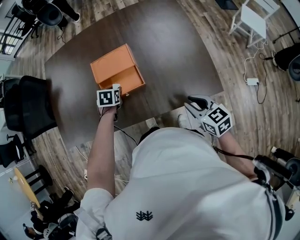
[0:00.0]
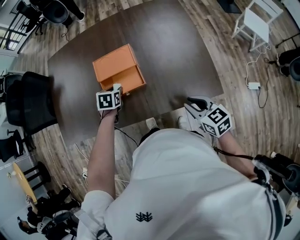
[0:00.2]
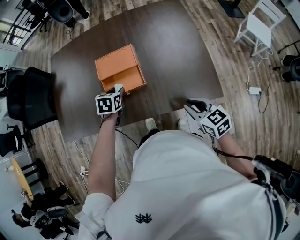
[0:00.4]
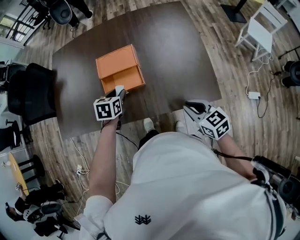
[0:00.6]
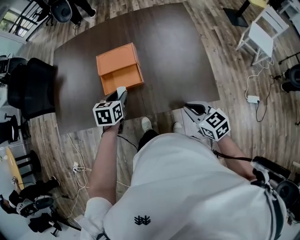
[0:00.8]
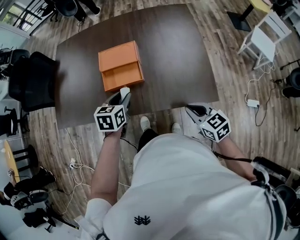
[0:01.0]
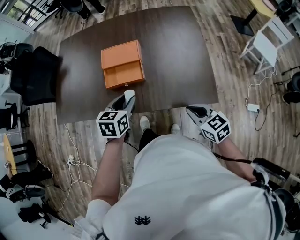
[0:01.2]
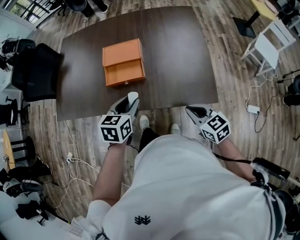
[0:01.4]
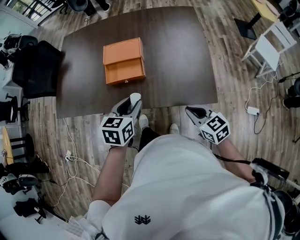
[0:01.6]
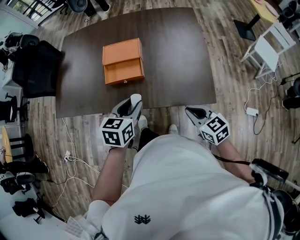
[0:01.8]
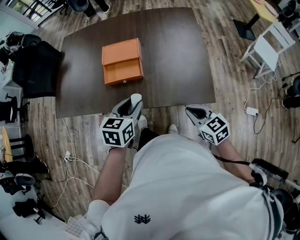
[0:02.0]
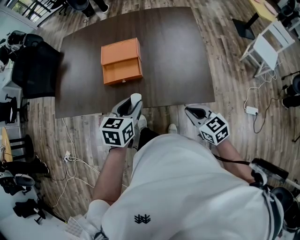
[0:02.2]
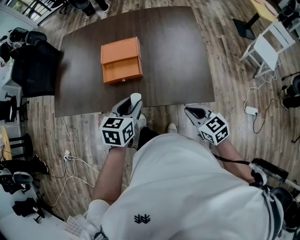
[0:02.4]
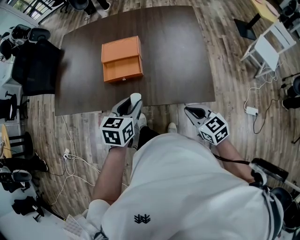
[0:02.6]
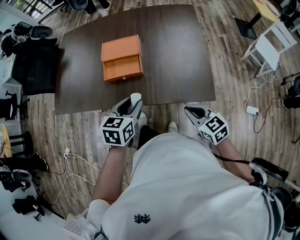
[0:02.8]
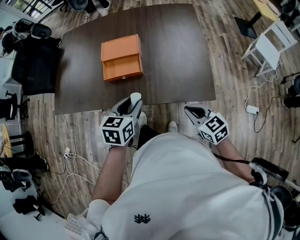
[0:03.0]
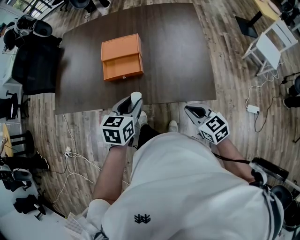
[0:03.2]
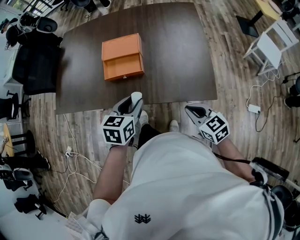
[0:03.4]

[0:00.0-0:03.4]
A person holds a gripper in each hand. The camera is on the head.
0:00.0 to 0:01.6: The right gripper is displaced backward by some 10 cm. The left gripper is displaced backward and upward by some 30 cm, and turns by approximately 30 degrees.
0:01.6 to 0:03.4: The grippers stay close to where they were, moving slightly.

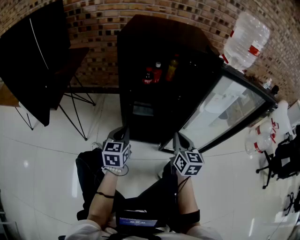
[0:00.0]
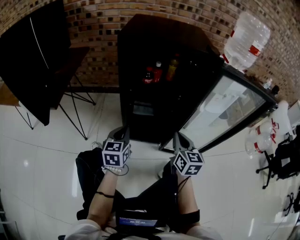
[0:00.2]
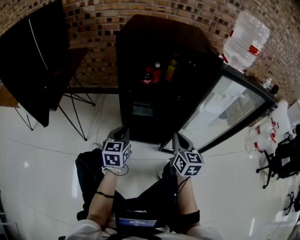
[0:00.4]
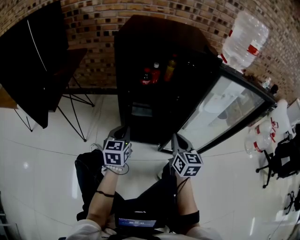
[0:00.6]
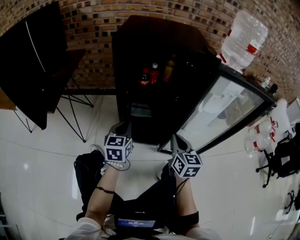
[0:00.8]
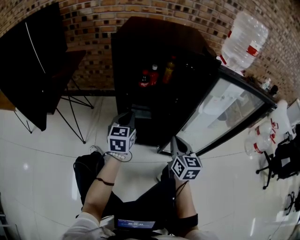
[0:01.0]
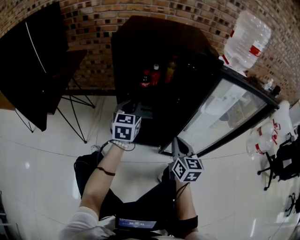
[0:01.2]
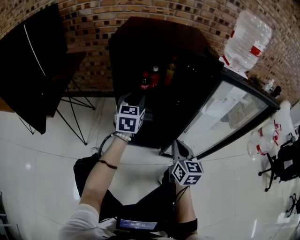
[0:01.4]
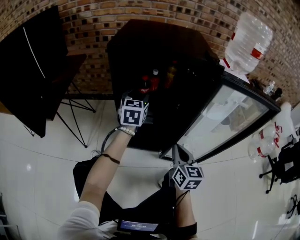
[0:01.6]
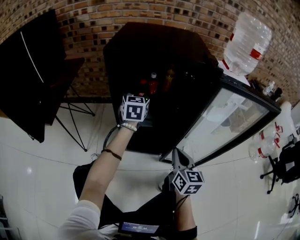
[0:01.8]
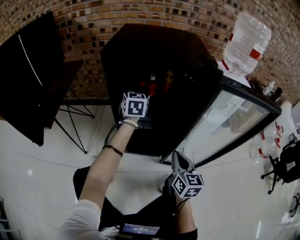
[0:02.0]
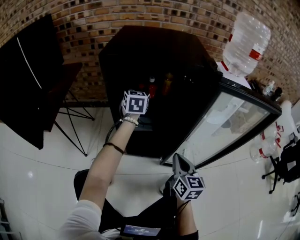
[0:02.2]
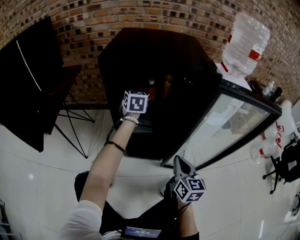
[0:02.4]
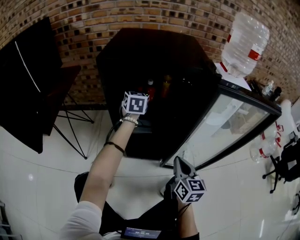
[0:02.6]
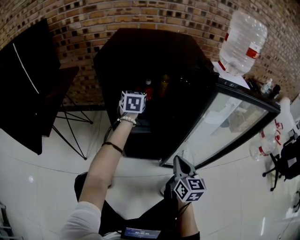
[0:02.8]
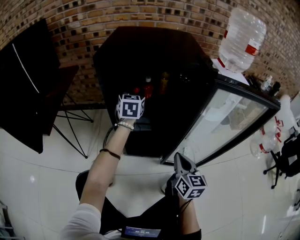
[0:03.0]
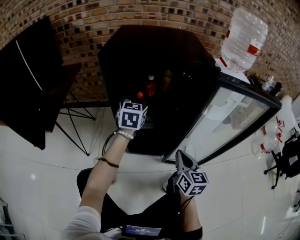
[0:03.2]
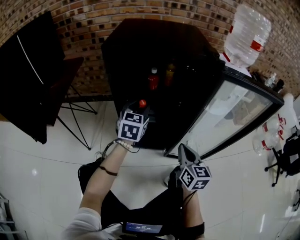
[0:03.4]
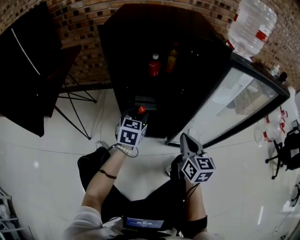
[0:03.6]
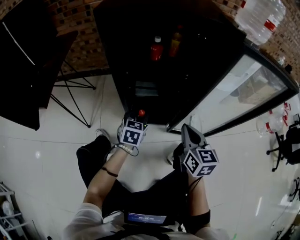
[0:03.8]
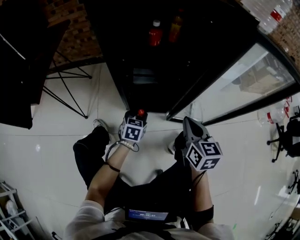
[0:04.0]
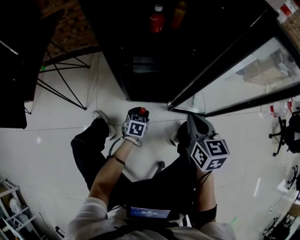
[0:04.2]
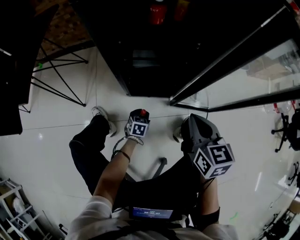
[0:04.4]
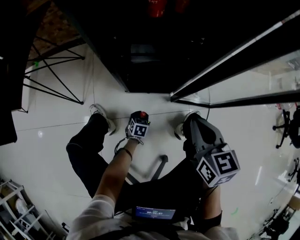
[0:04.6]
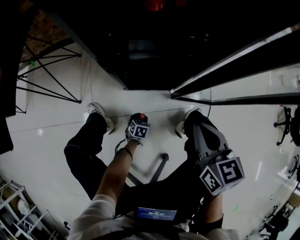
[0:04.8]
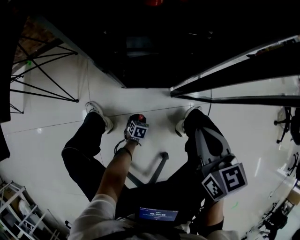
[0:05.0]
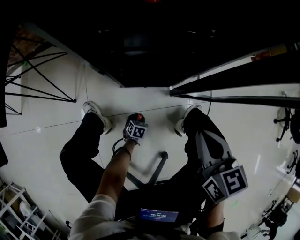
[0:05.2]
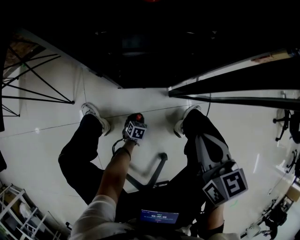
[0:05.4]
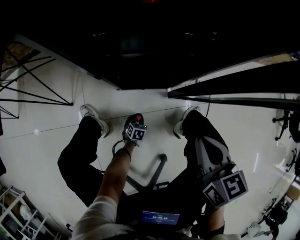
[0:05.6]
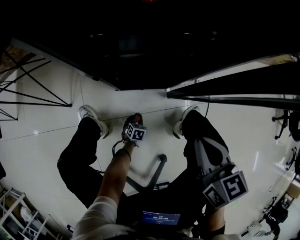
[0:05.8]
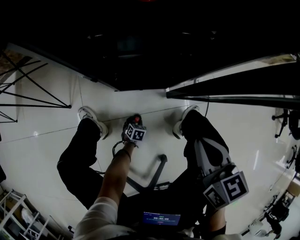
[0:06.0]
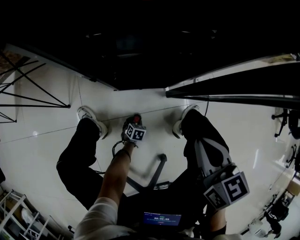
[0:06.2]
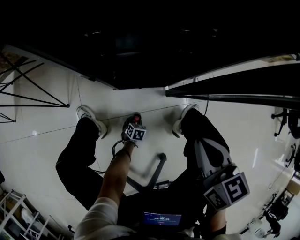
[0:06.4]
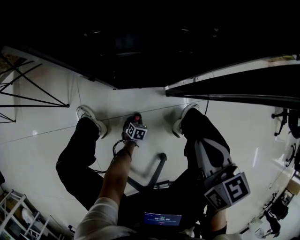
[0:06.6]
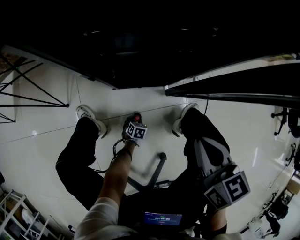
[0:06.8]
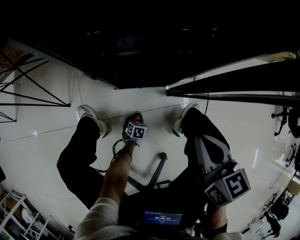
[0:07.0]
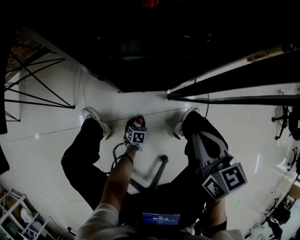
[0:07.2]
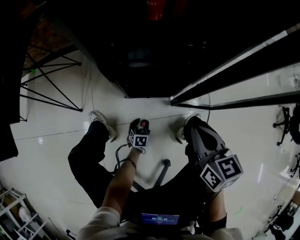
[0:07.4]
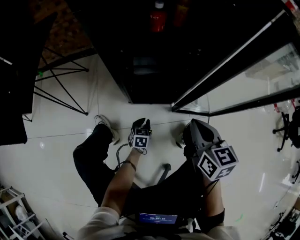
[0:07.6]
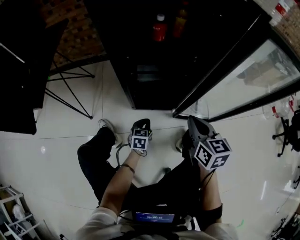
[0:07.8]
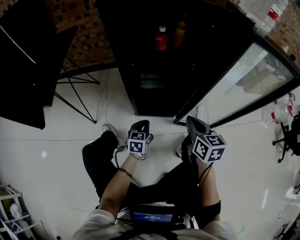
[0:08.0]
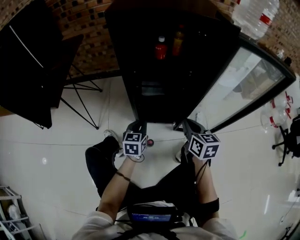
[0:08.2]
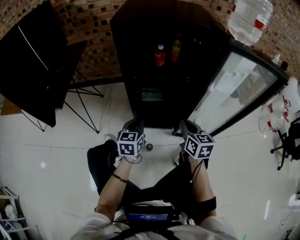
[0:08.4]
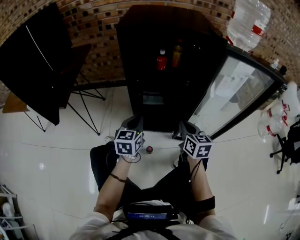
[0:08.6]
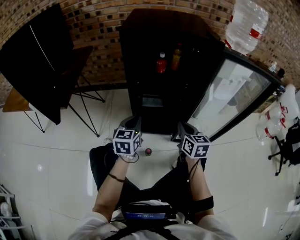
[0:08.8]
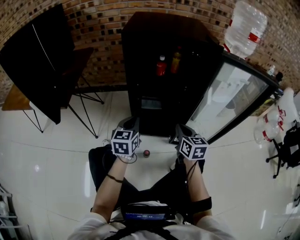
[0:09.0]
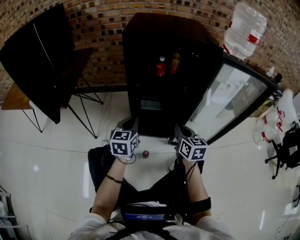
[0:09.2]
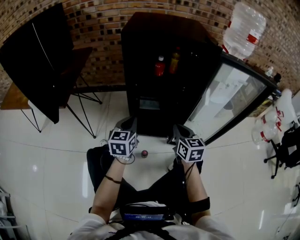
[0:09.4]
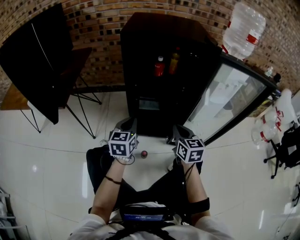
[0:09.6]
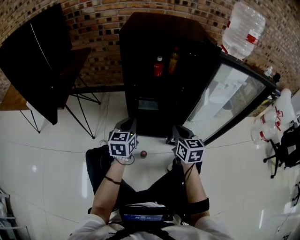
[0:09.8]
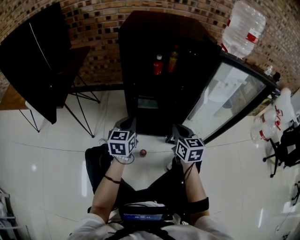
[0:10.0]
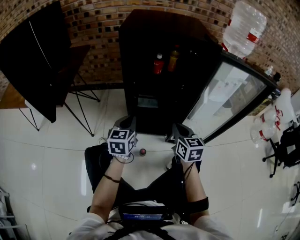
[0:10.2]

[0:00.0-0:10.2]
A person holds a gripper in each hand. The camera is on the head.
0:00.0 to 0:01.4: The left gripper travels forward and upward by about 20 cm, and opens its fingers.
0:01.4 to 0:03.0: The left gripper heads forward, covering approximately 10 cm.
0:03.0 to 0:04.4: The left gripper goes roughly 60 cm downward and backward, and points its fingers some 30 degrees further downward, while the right gripper travels downward by some 10 cm.
0:04.4 to 0:05.8: The left gripper travels downward by approximately 20 cm.
0:05.8 to 0:07.2: The grippers stay close to where they were, moving slightly.
0:07.2 to 0:08.8: The left gripper is displaced upward by roughly 60 cm, points its fingers some 40 degrees further upward, and closes up. The right gripper heads upward, covering approximately 10 cm.
0:08.8 to 0:10.2: The grippers move only a little.

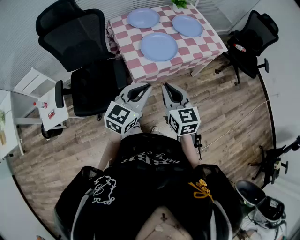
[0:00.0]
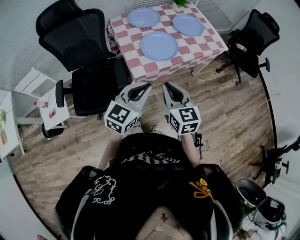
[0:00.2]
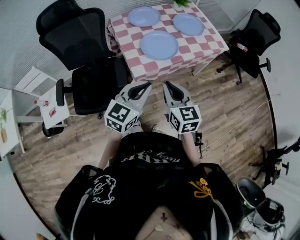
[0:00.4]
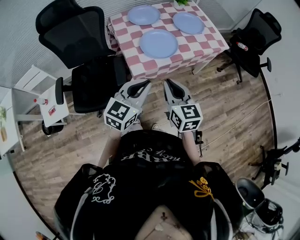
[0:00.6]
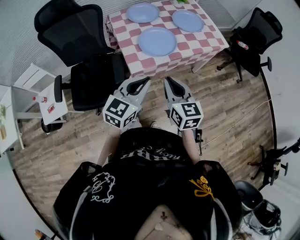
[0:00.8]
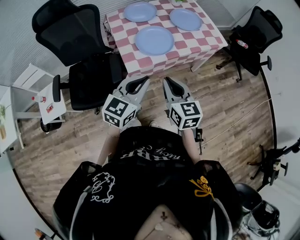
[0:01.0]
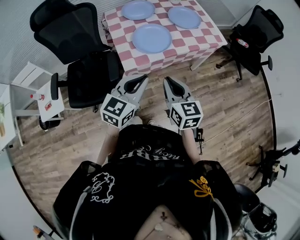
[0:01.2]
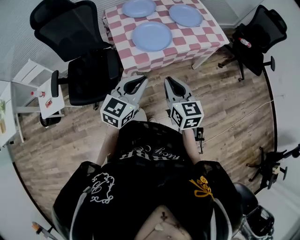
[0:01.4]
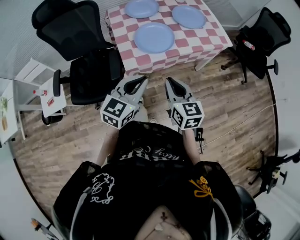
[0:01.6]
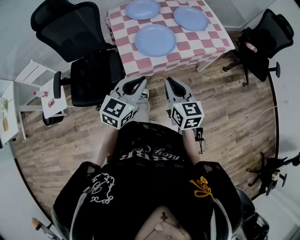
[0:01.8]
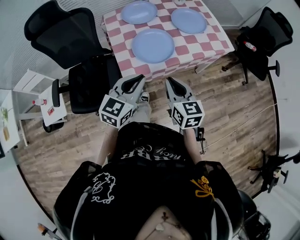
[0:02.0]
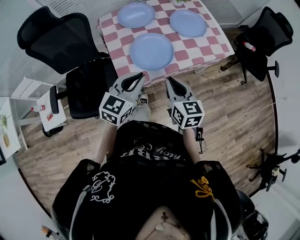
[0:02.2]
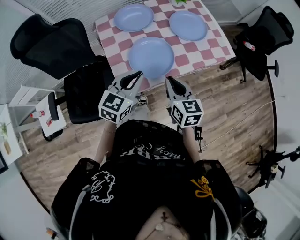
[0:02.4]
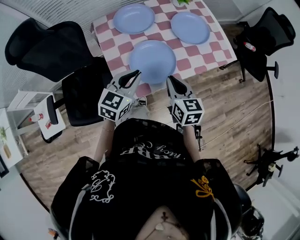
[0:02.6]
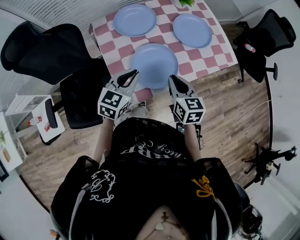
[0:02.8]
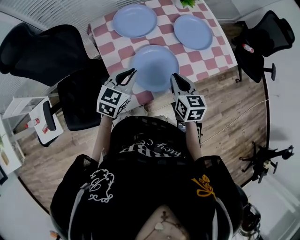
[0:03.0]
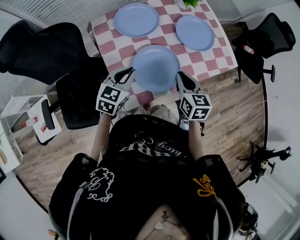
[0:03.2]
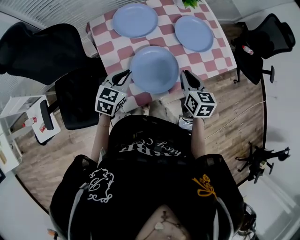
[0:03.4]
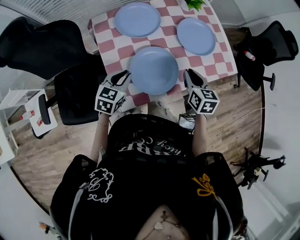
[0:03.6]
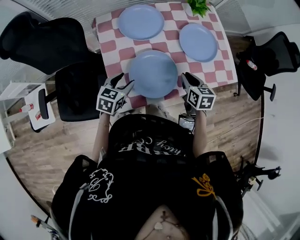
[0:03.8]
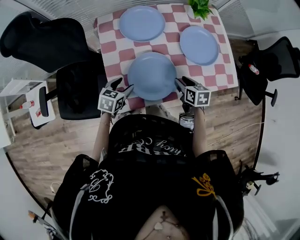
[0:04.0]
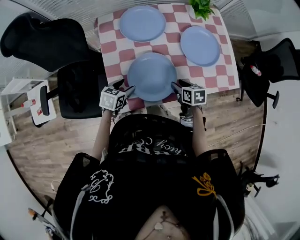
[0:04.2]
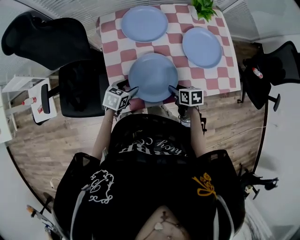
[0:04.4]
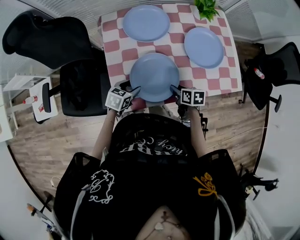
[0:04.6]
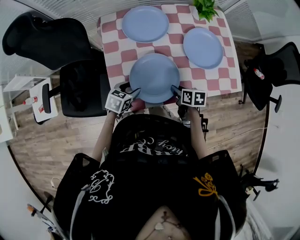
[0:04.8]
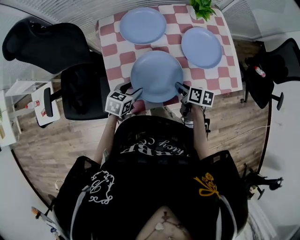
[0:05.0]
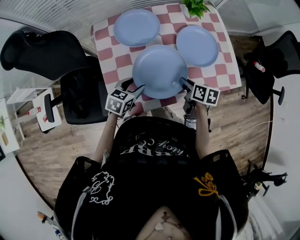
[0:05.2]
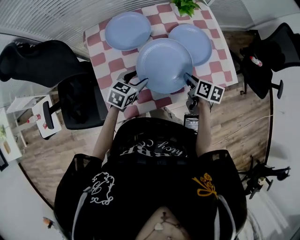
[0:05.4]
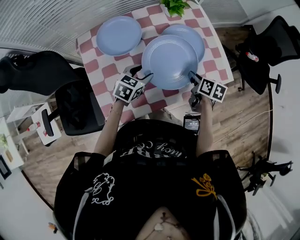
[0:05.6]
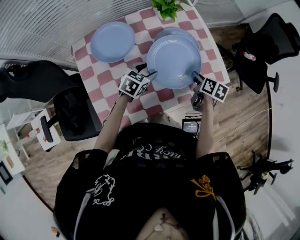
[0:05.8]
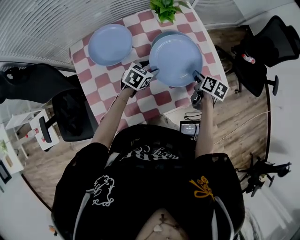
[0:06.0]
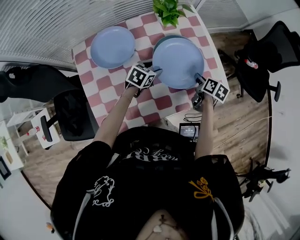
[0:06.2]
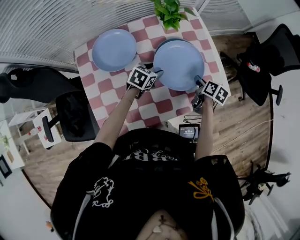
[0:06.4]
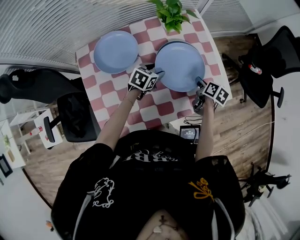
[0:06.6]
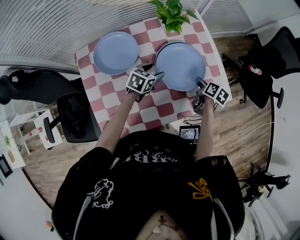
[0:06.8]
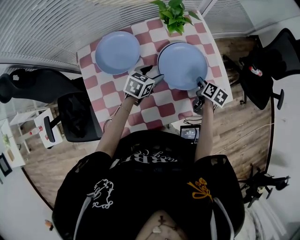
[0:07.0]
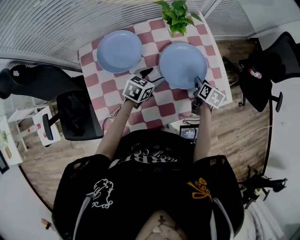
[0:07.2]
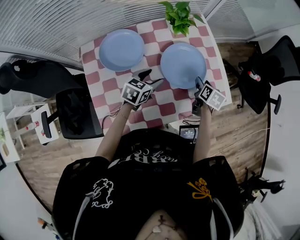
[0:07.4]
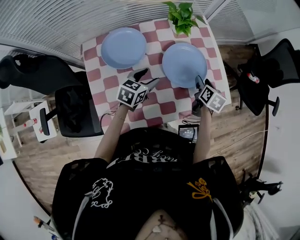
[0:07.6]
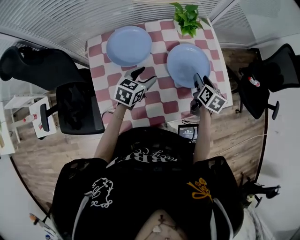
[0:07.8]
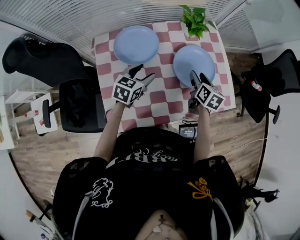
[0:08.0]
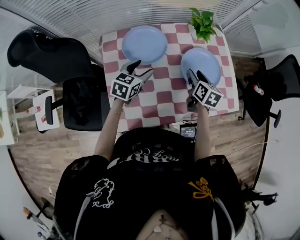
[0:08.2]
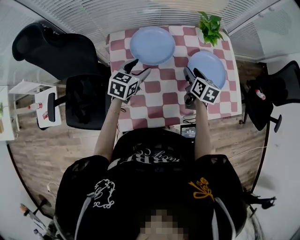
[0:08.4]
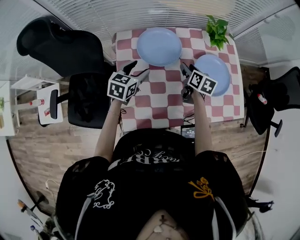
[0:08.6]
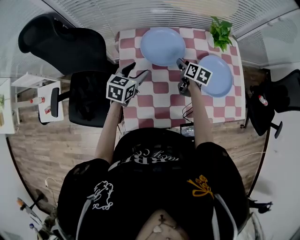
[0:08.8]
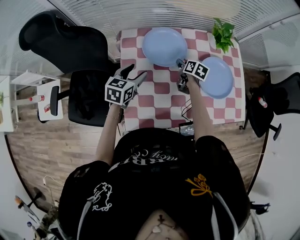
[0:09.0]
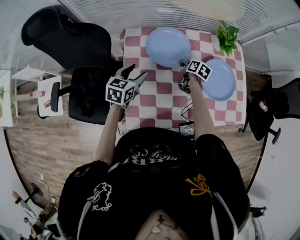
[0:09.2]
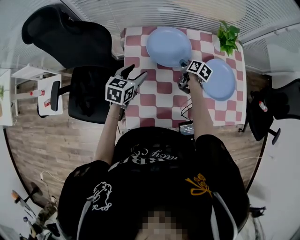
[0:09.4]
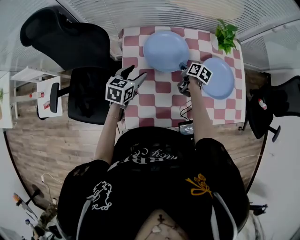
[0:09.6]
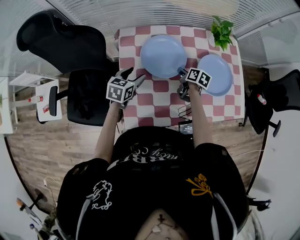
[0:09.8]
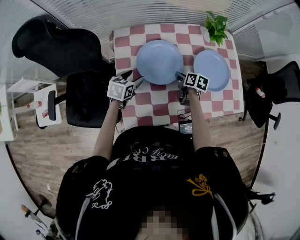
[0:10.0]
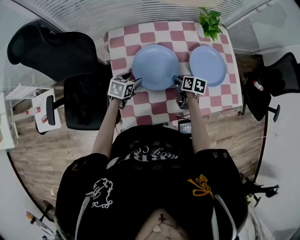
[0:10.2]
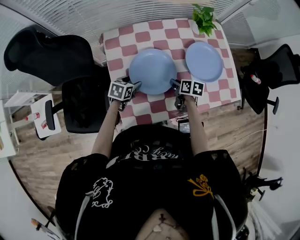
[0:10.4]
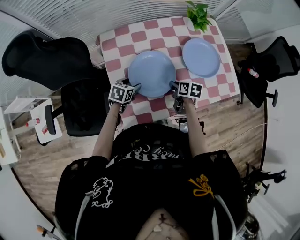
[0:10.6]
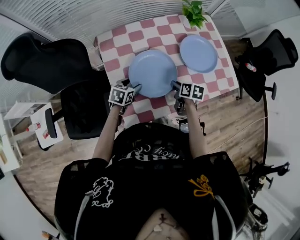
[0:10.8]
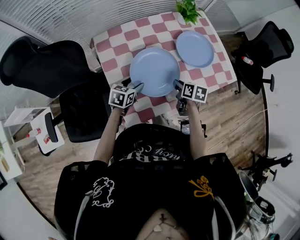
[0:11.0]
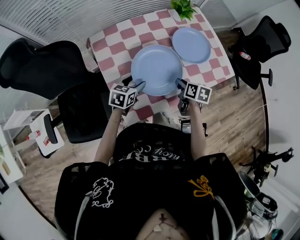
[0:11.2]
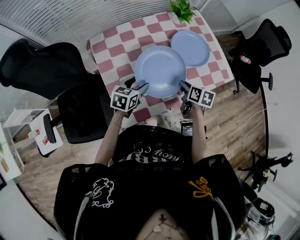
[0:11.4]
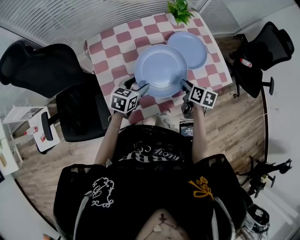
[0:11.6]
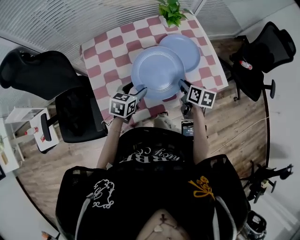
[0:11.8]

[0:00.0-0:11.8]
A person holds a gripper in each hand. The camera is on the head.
0:00.0 to 0:01.4: Both grippers move to the right, approximately 10 cm.
0:01.4 to 0:03.0: The grippers both shift forward by some 30 cm.
0:03.0 to 0:04.4: The two grippers go about 15 cm downward. The right gripper swivels approximately 40 degrees, and opens. Meanwhile the left gripper turns by approximately 30 degrees, and opens up.
0:04.4 to 0:06.0: The left gripper shifts by approximately 30 cm, and swivels some 20 degrees. Meanwhile the right gripper shifts by about 30 cm, rotates some 40 degrees, and closes.
0:06.0 to 0:07.4: The right gripper opens up. Meanwhile the left gripper moves some 5 cm.
0:07.4 to 0:08.8: The left gripper moves about 25 cm, and swivels about 20 degrees, while the right gripper moves roughly 30 cm, and turns by roughly 20 degrees.
0:08.8 to 0:10.4: The left gripper moves downward, approximately 15 cm, and turns by some 20 degrees. The right gripper moves backward, about 15 cm, and closes its fingers.
0:10.4 to 0:11.8: Both grippers travel together to the right and upward, about 20 cm.
